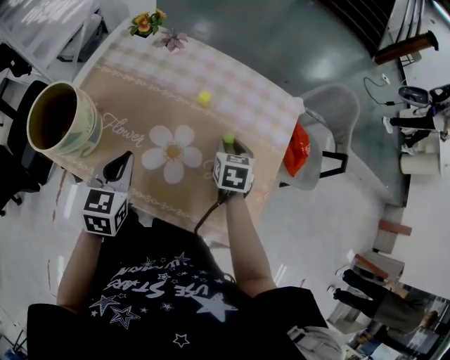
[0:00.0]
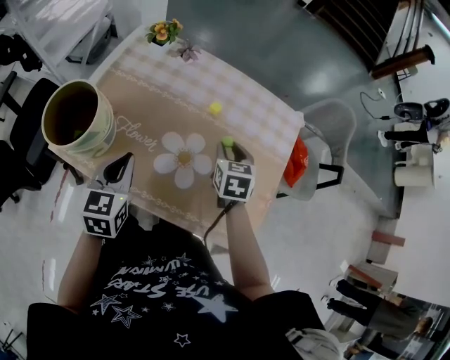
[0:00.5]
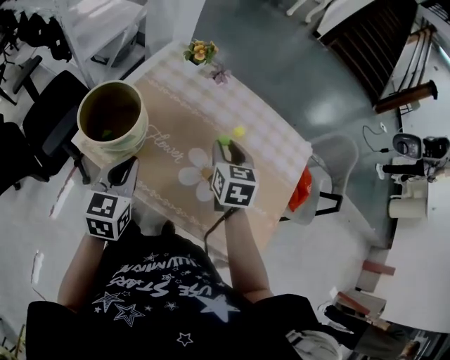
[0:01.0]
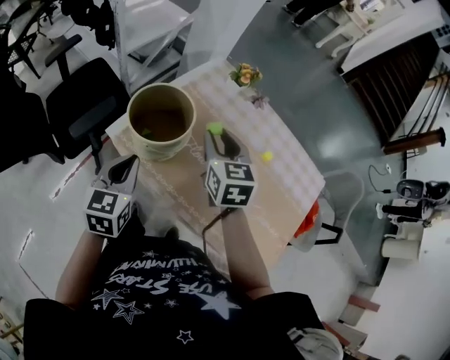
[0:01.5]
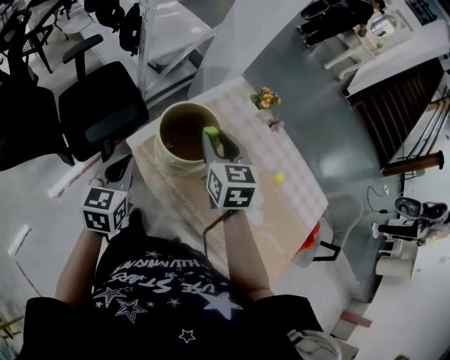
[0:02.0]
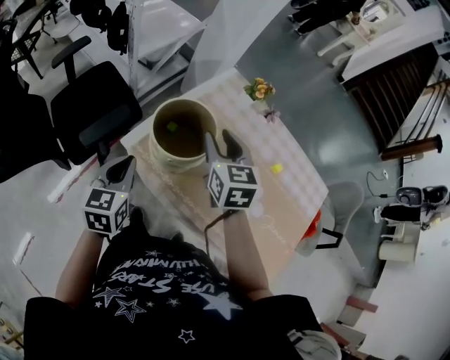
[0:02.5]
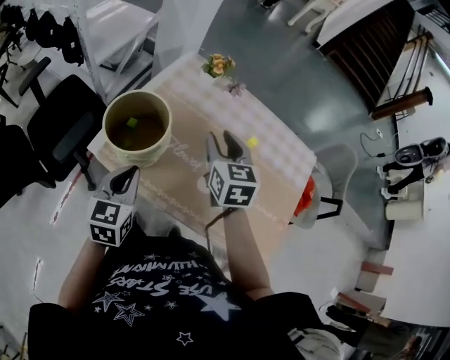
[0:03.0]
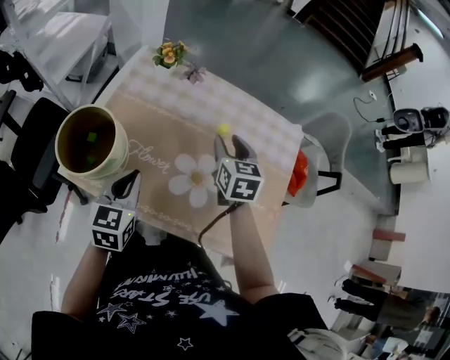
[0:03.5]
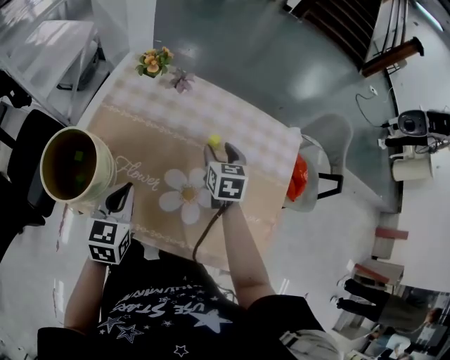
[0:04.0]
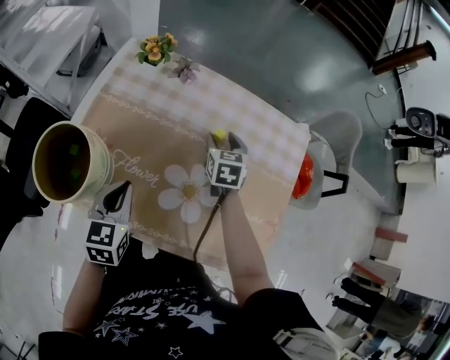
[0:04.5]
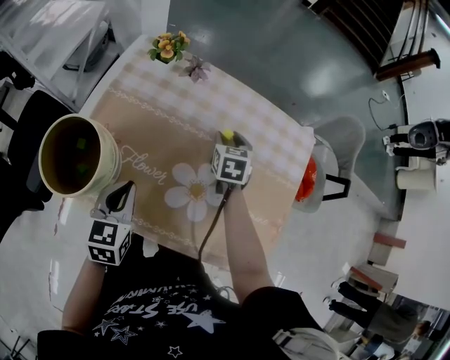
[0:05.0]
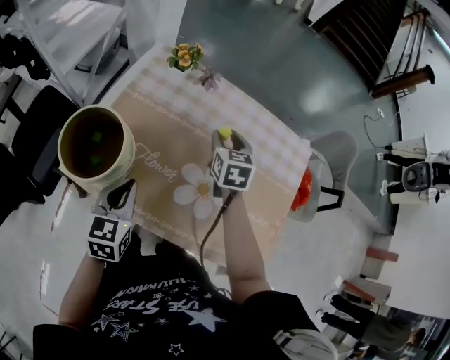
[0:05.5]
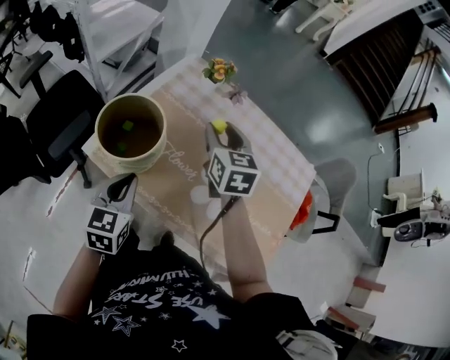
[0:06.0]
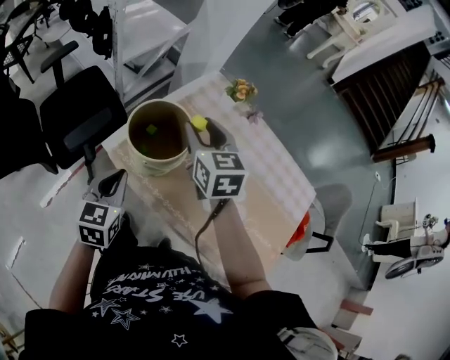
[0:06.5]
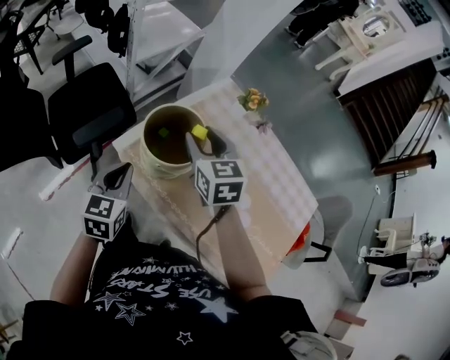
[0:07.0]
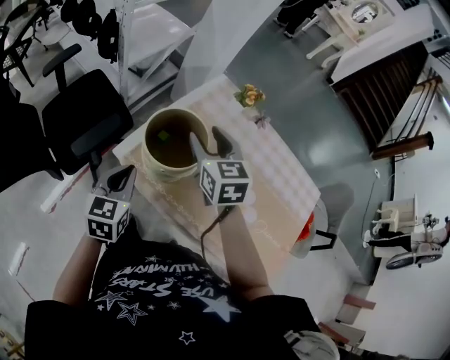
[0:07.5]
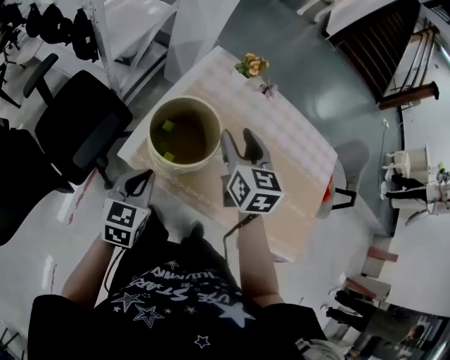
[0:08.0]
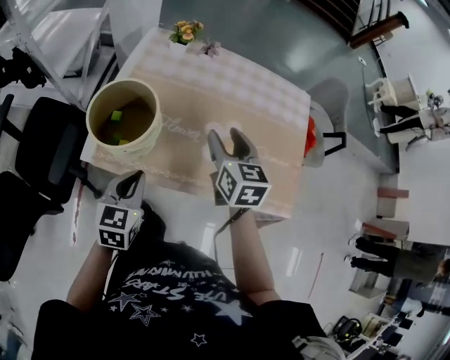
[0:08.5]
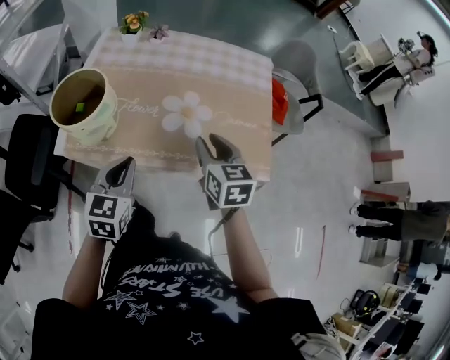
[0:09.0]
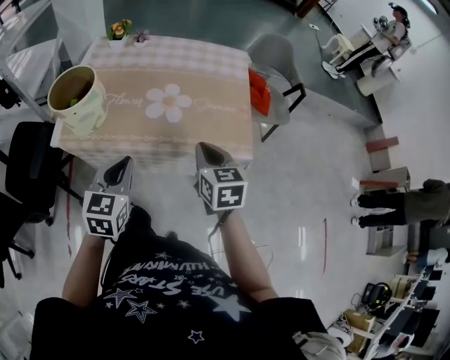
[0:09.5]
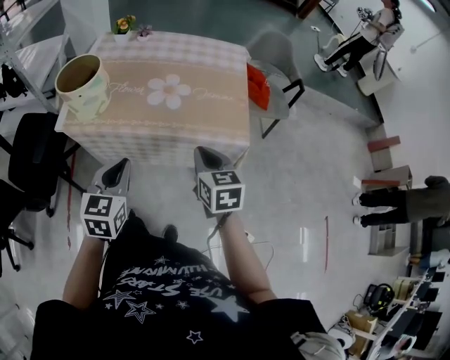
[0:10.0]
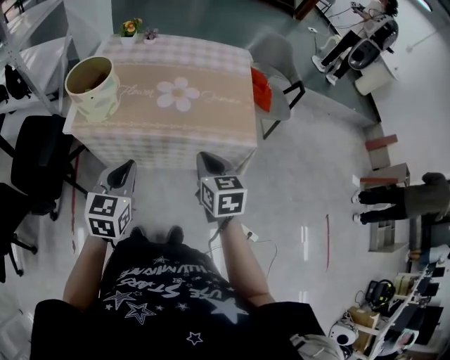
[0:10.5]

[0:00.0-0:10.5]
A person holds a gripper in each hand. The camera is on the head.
0.0 to 2.0 s: The right gripper moves approximately 50 cm, and turns by roughly 40 degrees, while the left gripper moves some 30 cm, and swivels about 30 degrees.
2.0 to 4.0 s: The right gripper shifts by some 40 cm, turns by roughly 40 degrees, and opens up. The left gripper moves about 25 cm, and rotates roughly 30 degrees.
4.0 to 6.5 s: The left gripper changes place by roughly 20 cm, and rotates about 20 degrees. Meanwhile the right gripper ends up some 35 cm from where it was, and swivels approximately 40 degrees.
6.5 to 8.5 s: The left gripper moves some 10 cm, and changes its angle by approximately 30 degrees. The right gripper shifts by approximately 20 cm, and turns by about 40 degrees.
8.5 to 10.5 s: The right gripper shifts some 30 cm backward and to the right, and closes up. The left gripper shifts about 25 cm backward, to the right and upward.

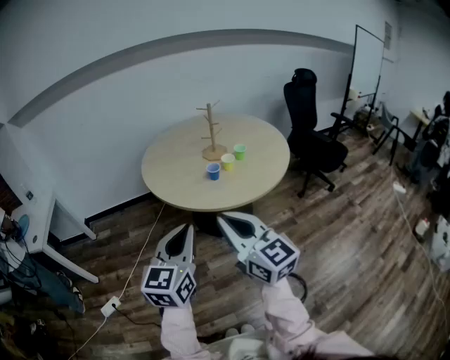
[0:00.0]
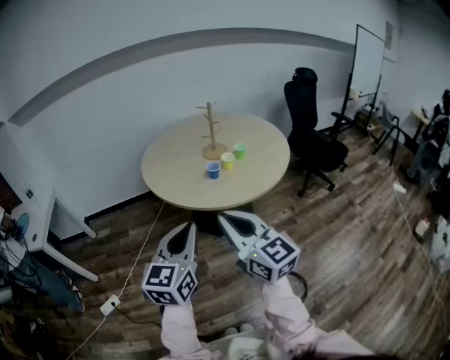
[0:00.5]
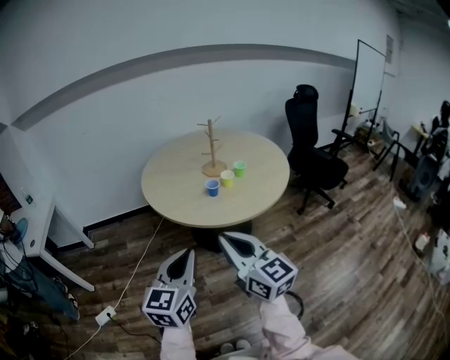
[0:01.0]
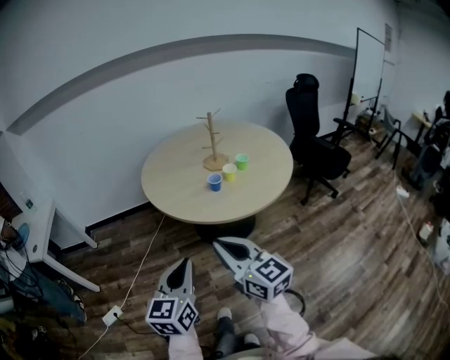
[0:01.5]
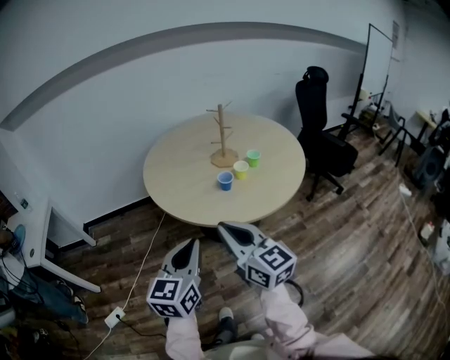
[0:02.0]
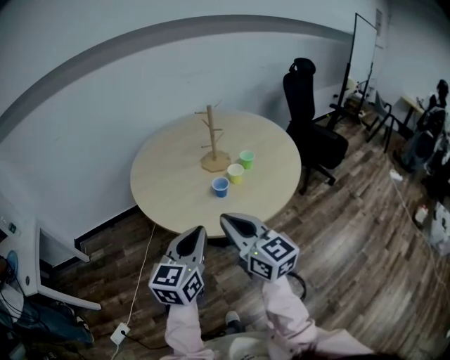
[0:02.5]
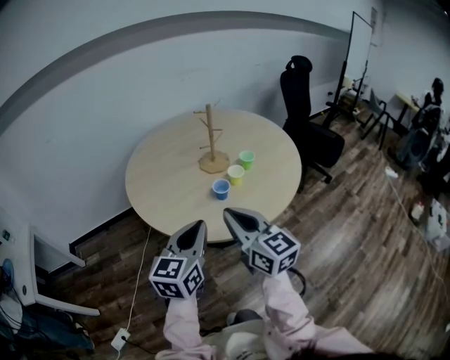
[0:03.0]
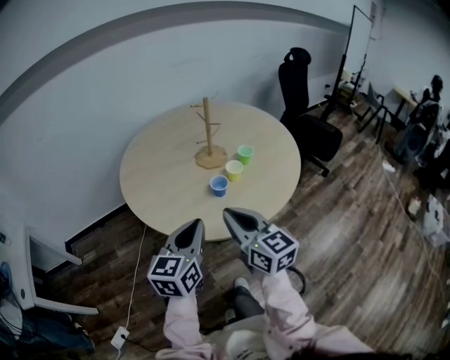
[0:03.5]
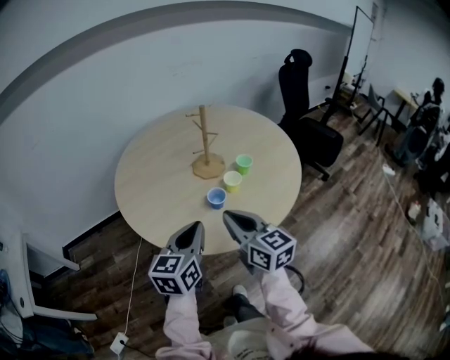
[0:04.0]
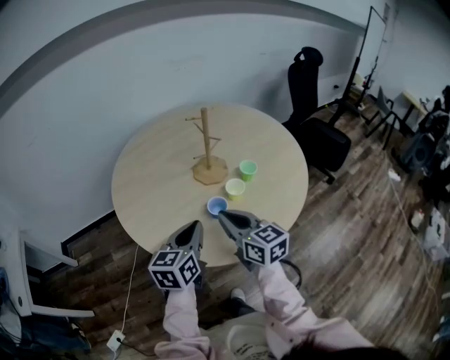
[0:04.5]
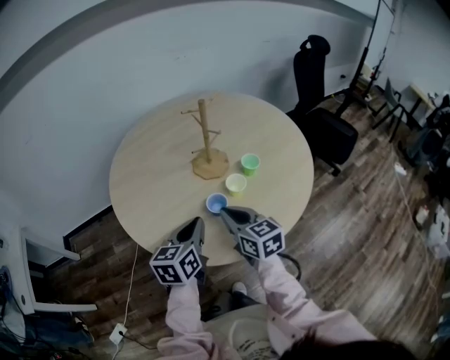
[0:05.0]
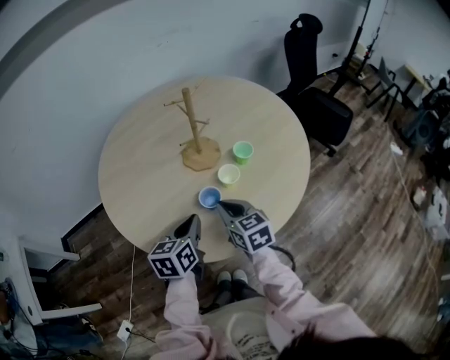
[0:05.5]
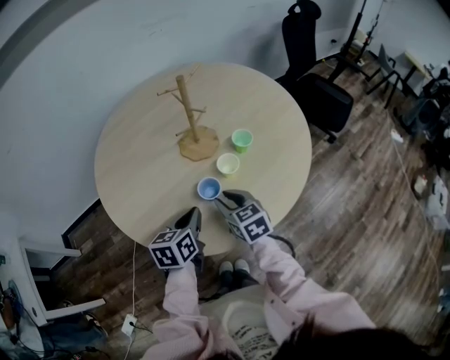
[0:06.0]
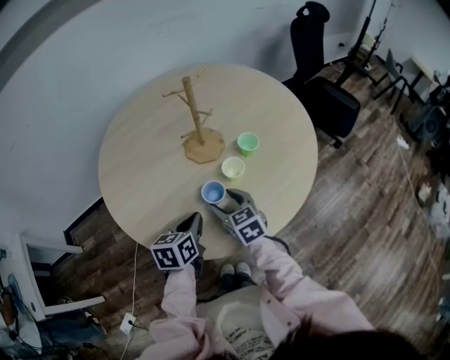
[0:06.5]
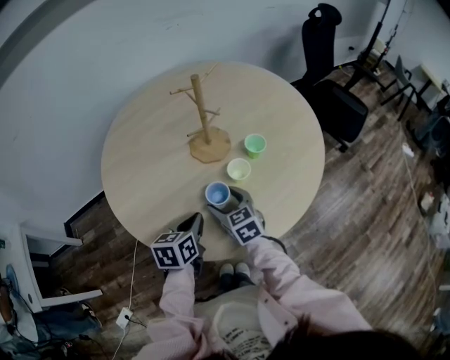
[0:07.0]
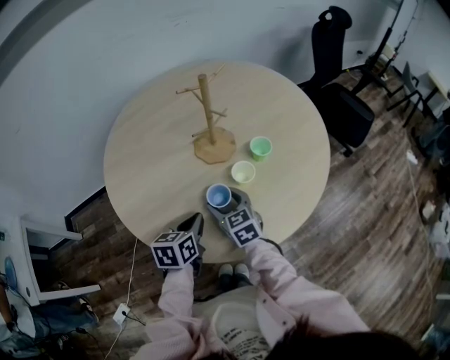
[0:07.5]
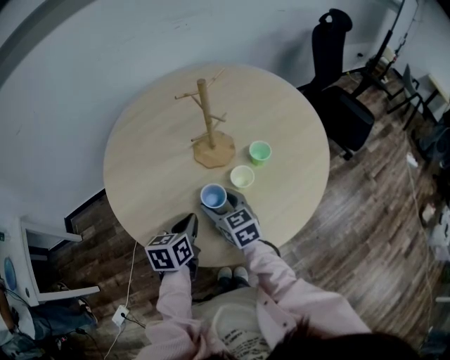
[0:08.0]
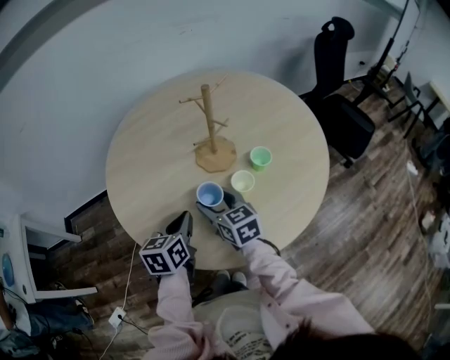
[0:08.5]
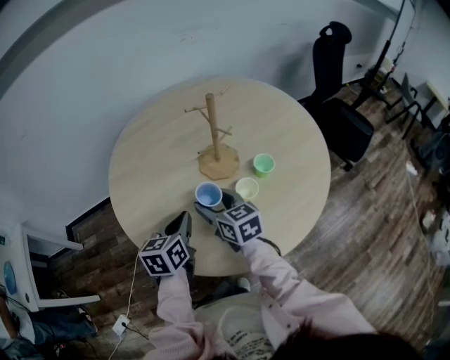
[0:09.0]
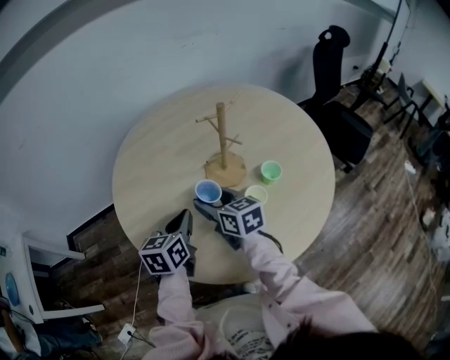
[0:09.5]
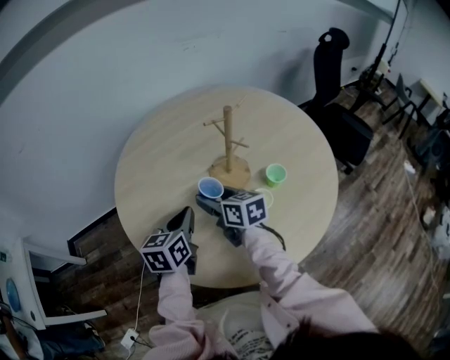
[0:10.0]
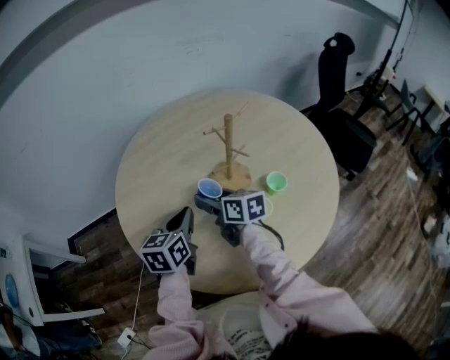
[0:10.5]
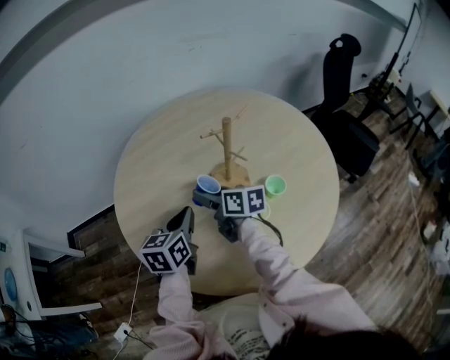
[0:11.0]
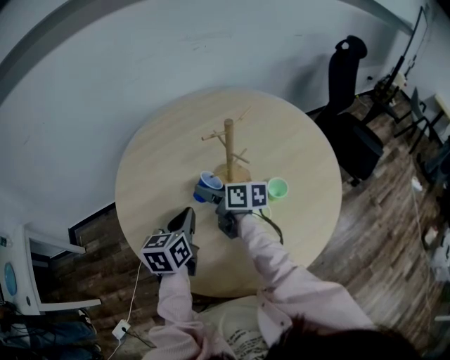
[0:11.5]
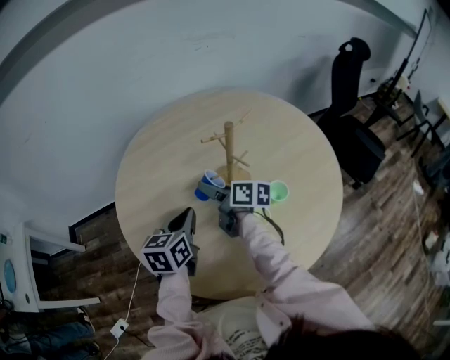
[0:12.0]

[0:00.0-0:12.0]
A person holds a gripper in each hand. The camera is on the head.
0.0 to 2.0 s: The left gripper goes roughly 10 cm forward and downward, while the right gripper moves forward, approximately 15 cm.
2.0 to 4.0 s: The two grippers go some 20 cm forward.
4.0 to 6.0 s: The grippers both shift downward and forward by about 20 cm. The right gripper rotates roughly 30 degrees, while the left gripper rotates roughly 20 degrees.
6.0 to 8.0 s: The right gripper moves to the left, about 5 cm, and opens up.
8.0 to 10.0 s: The right gripper shifts approximately 15 cm forward, upward and to the left, and turns by roughly 20 degrees. The left gripper shifts approximately 10 cm forward and upward.
10.0 to 12.0 s: The right gripper travels forward by about 5 cm, and rotates about 30 degrees.

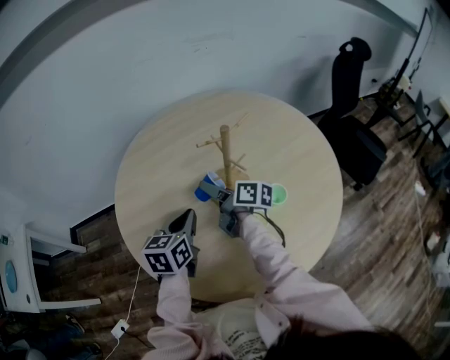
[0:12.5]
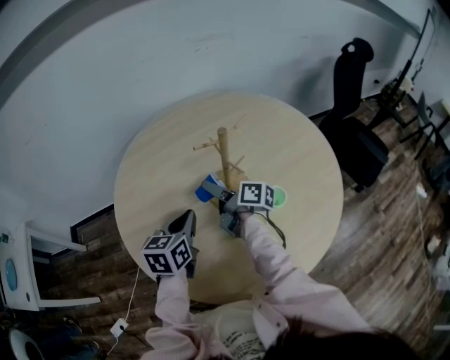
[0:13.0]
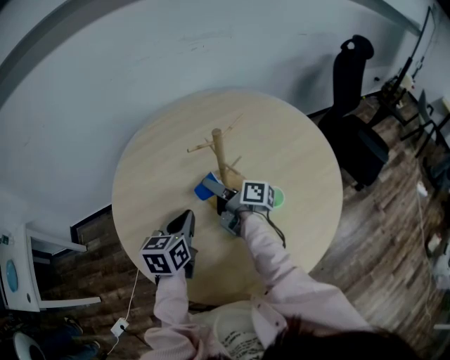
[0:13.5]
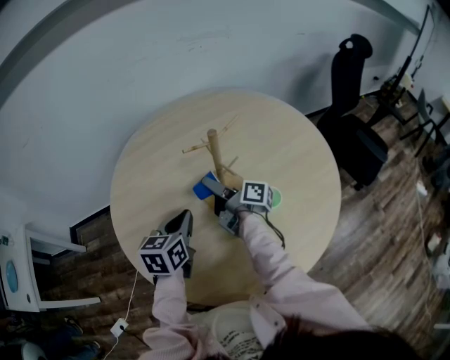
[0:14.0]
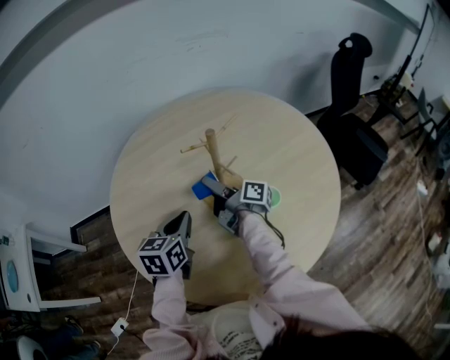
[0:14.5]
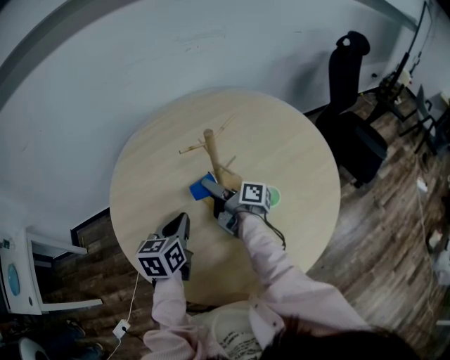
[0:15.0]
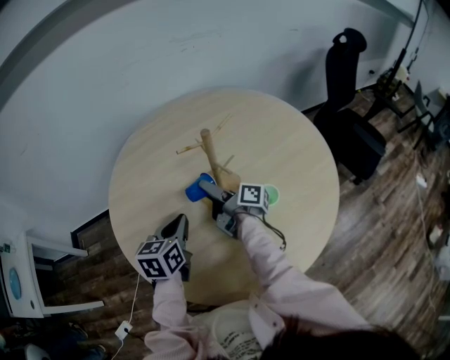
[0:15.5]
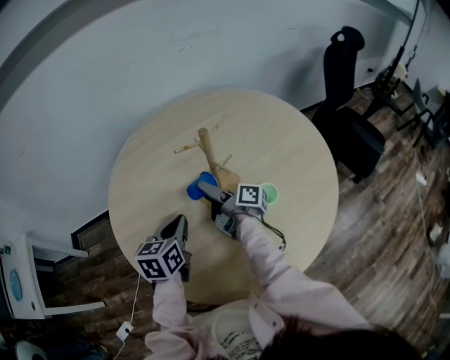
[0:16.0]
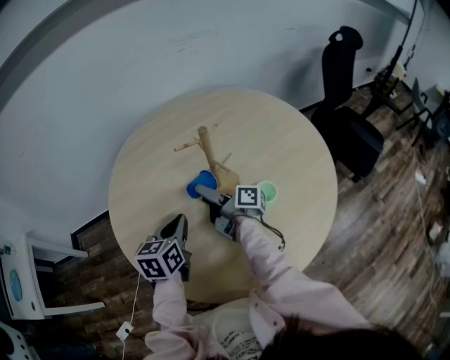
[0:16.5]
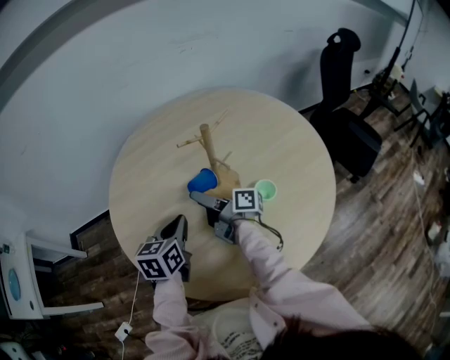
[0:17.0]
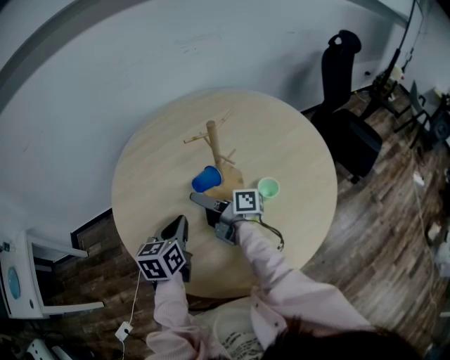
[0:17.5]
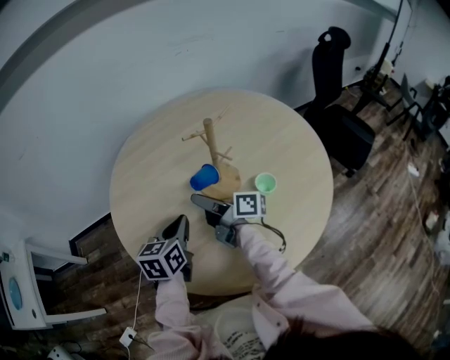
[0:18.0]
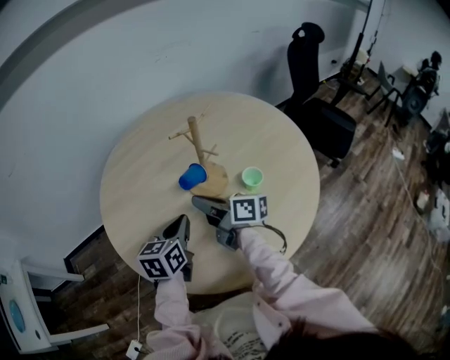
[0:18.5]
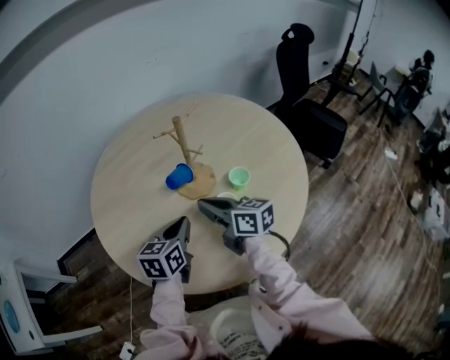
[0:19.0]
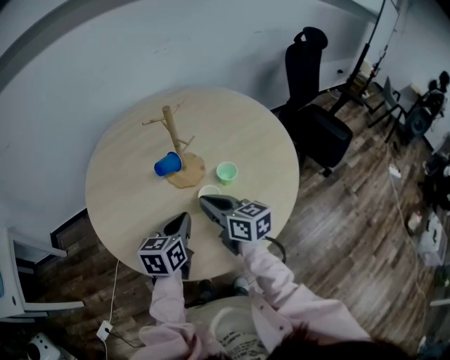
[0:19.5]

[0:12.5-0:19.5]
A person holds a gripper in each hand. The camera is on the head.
12.5 to 14.5 s: The right gripper turns by roughly 20 degrees.
14.5 to 16.0 s: There are only small adjustments of the grippers.
16.0 to 17.5 s: The right gripper moves to the left, some 5 cm.
17.5 to 19.5 s: The left gripper moves to the right and backward, some 15 cm. The right gripper goes approximately 20 cm backward and to the right, twists about 40 degrees counterclockwise, seen from behind, and closes up.
